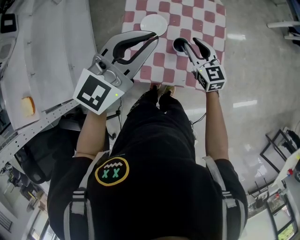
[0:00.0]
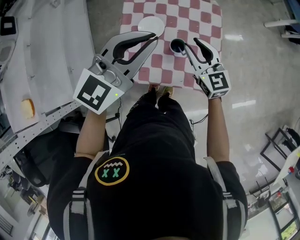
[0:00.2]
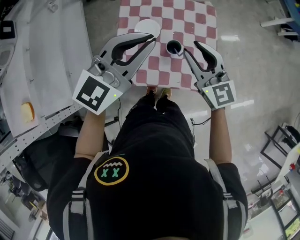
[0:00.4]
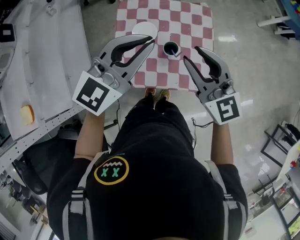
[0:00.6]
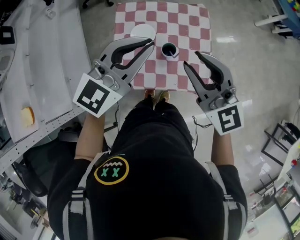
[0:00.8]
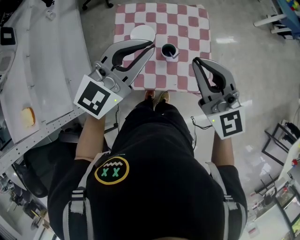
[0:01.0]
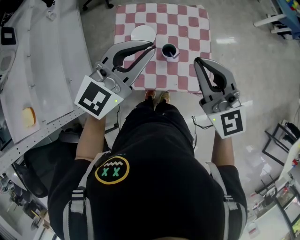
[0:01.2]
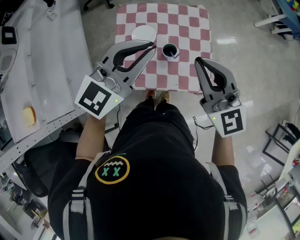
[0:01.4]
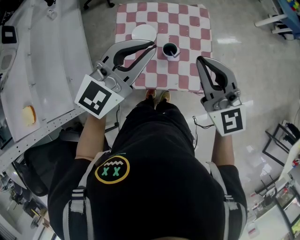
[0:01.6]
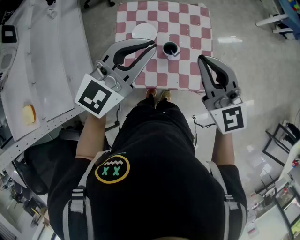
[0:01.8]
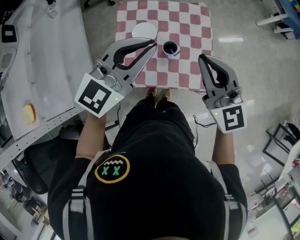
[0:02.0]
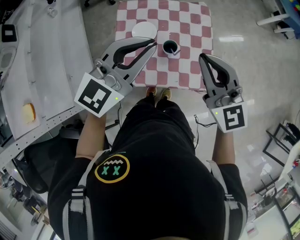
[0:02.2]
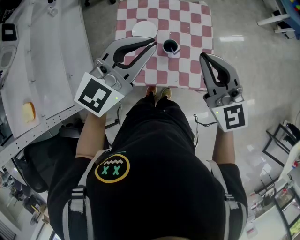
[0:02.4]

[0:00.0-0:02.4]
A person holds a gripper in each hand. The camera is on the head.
0.0 to 1.2 s: The left gripper changes place by some 5 cm. Meanwhile the right gripper is displaced upward and backward by roughly 25 cm, rotates roughly 20 degrees, and closes up.
1.2 to 2.4 s: There are only small adjustments of the grippers.

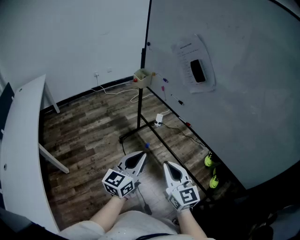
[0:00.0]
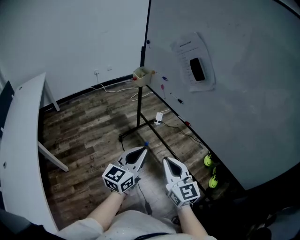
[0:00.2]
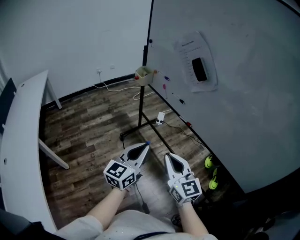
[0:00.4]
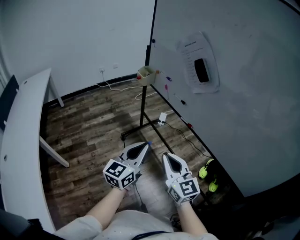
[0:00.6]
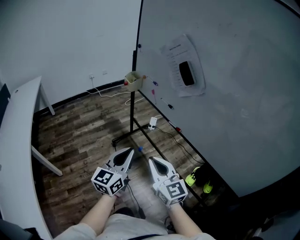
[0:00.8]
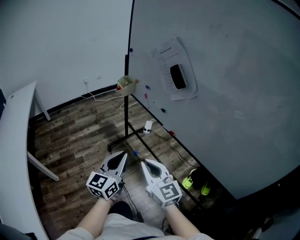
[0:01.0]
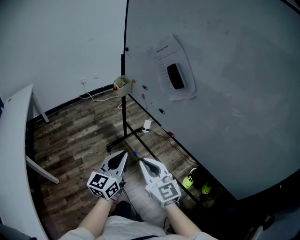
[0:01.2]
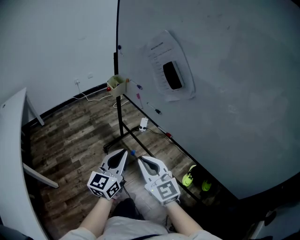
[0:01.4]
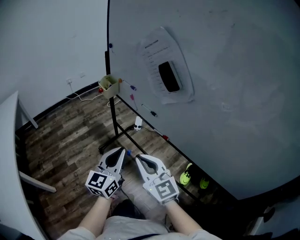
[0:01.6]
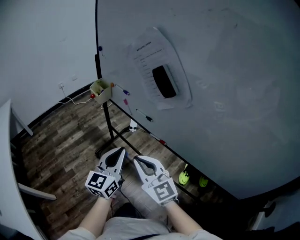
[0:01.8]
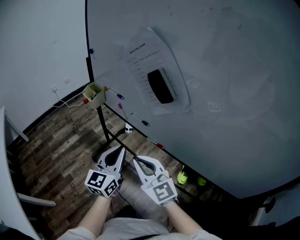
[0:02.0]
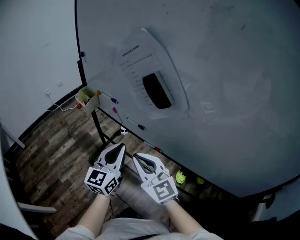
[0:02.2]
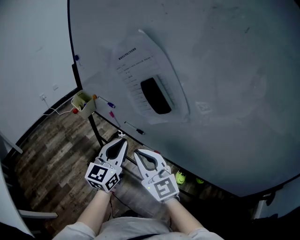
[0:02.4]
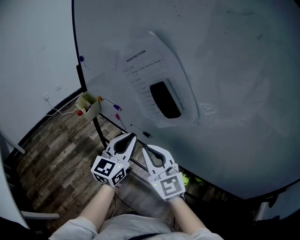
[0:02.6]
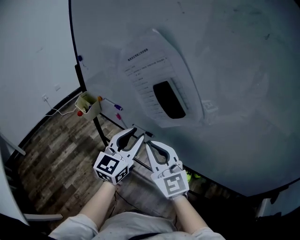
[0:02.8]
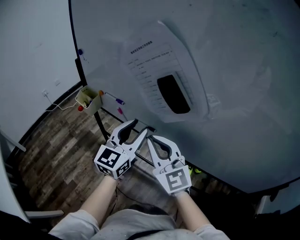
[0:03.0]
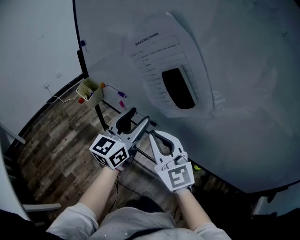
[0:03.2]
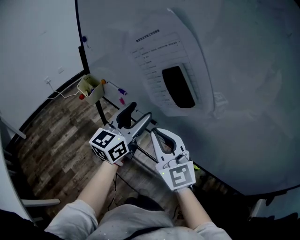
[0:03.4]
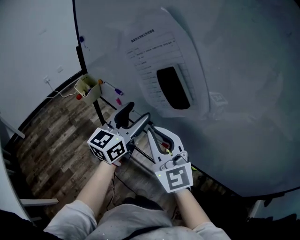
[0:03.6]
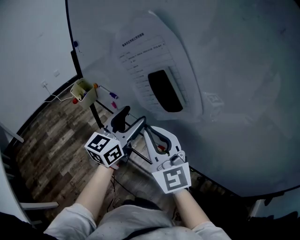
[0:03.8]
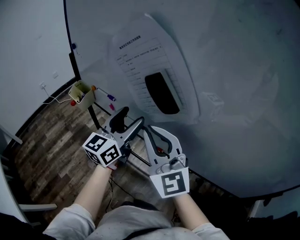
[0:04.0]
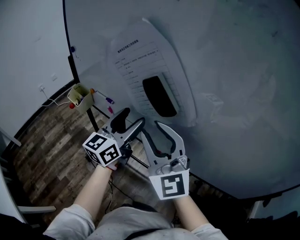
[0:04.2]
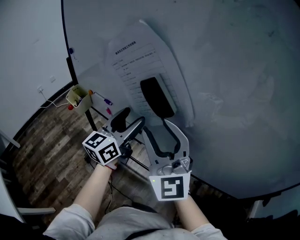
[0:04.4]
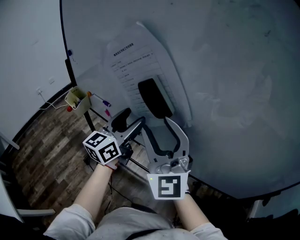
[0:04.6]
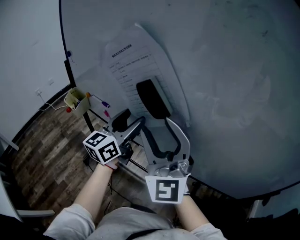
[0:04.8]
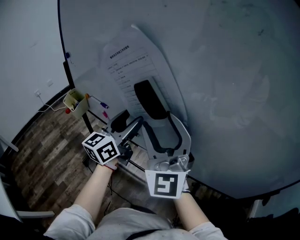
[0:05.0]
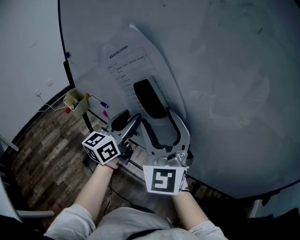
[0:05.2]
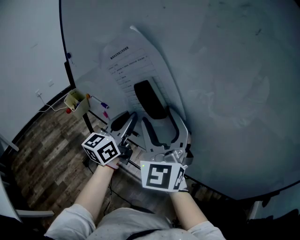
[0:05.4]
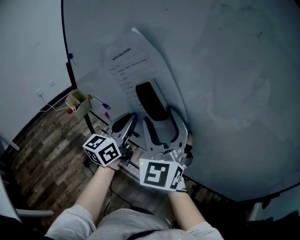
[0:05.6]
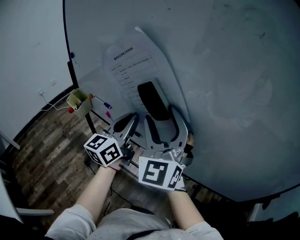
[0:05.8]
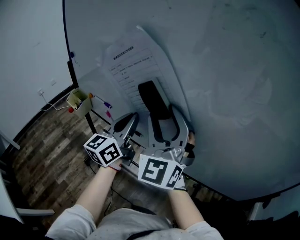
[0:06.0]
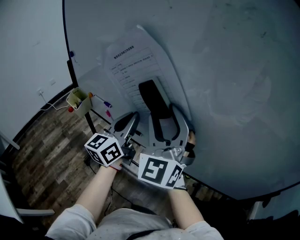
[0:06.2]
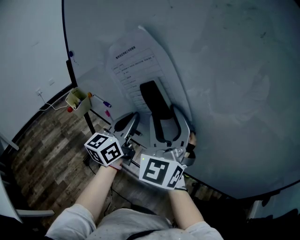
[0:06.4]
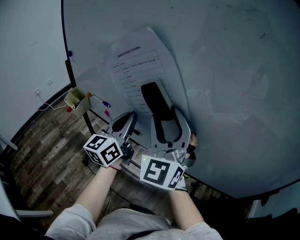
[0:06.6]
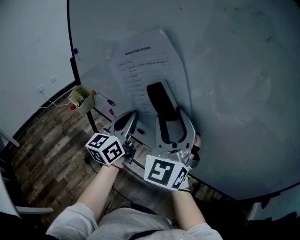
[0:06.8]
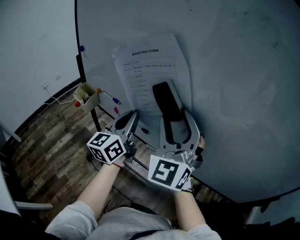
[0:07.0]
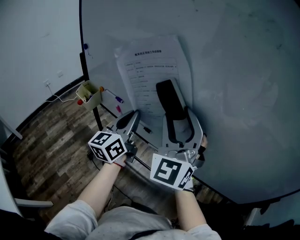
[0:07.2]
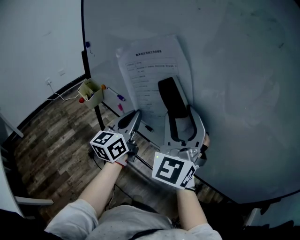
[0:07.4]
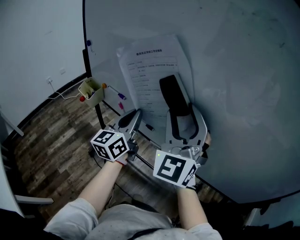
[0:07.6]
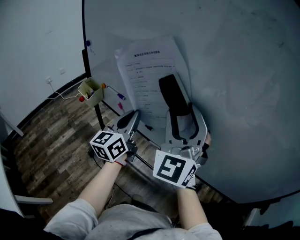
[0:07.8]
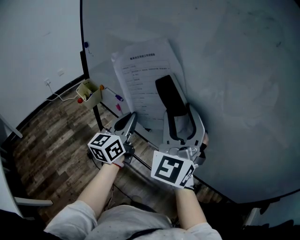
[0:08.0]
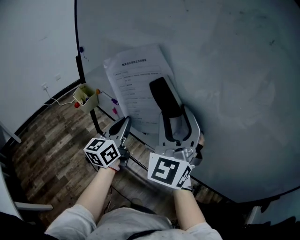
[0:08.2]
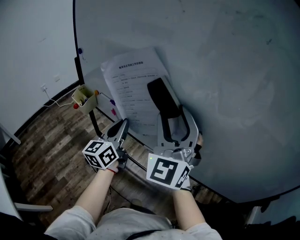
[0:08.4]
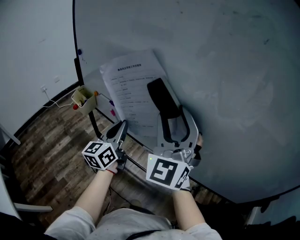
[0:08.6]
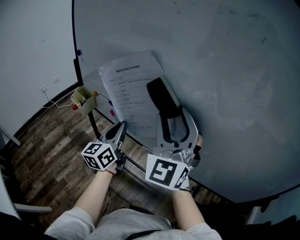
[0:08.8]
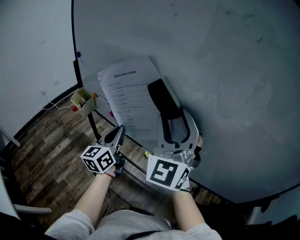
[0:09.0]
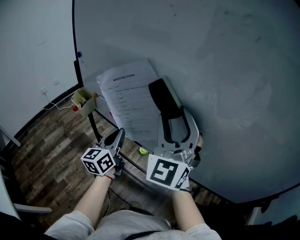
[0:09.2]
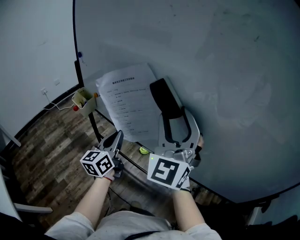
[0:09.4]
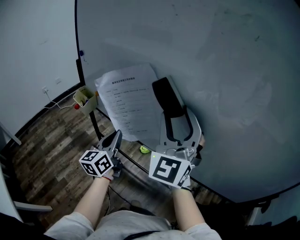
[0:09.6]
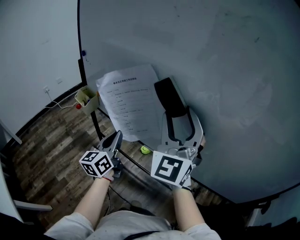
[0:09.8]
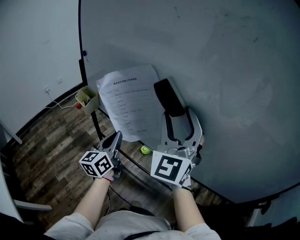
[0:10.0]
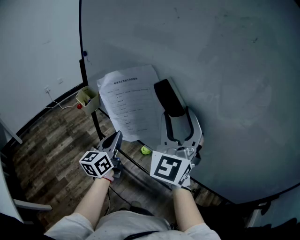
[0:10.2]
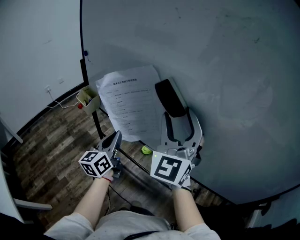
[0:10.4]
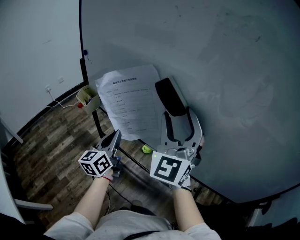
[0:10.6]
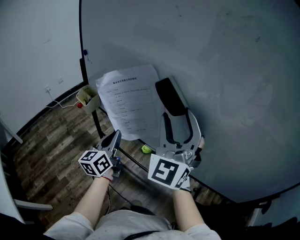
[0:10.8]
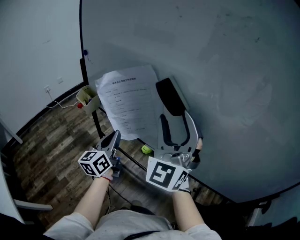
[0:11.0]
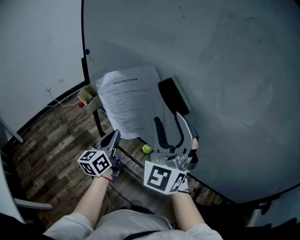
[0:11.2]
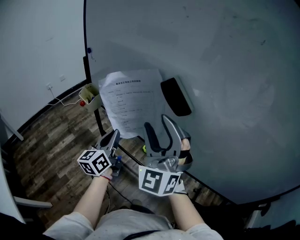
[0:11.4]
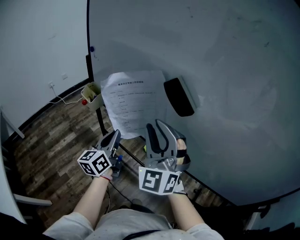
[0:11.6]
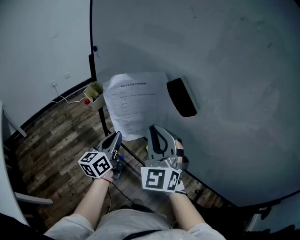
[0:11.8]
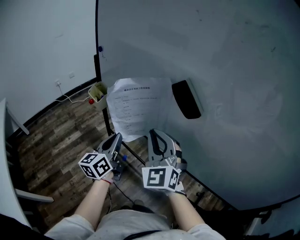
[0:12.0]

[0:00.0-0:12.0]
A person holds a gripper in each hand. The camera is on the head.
0.0 to 1.6 s: The two grippers go approximately 20 cm forward.
1.6 to 3.0 s: Both grippers travel together forward, approximately 20 cm. The left gripper rotates some 20 degrees, and opens its fingers, while the right gripper rotates some 20 degrees.
3.0 to 4.4 s: The left gripper changes place by some 5 cm, and opens its fingers. The right gripper moves upward and to the right, approximately 10 cm, and opens.
4.4 to 6.0 s: The right gripper changes place by some 5 cm, and changes its angle by approximately 30 degrees; the left gripper closes its fingers.
6.0 to 7.6 s: The left gripper moves approximately 5 cm.
7.6 to 9.0 s: The grippers stay close to where they were, moving slightly.
9.0 to 10.4 s: There are only small adjustments of the grippers.
10.4 to 12.0 s: The right gripper goes roughly 15 cm downward and to the left, changes its angle by roughly 30 degrees, and closes its fingers.

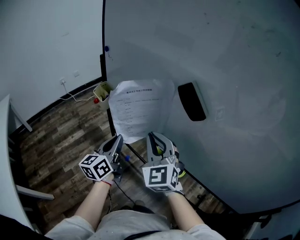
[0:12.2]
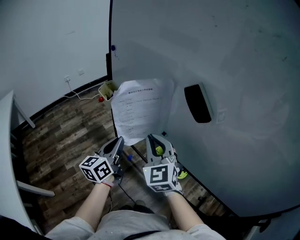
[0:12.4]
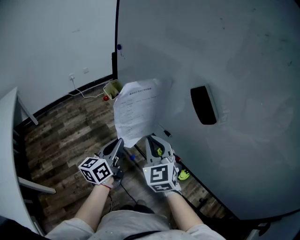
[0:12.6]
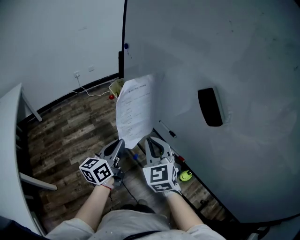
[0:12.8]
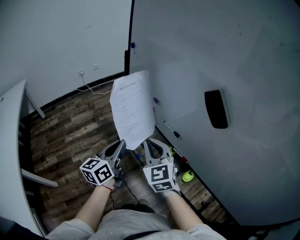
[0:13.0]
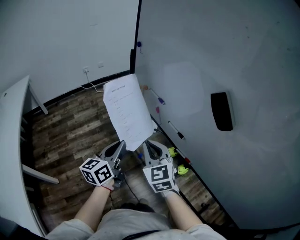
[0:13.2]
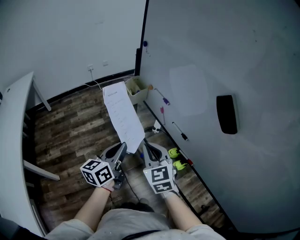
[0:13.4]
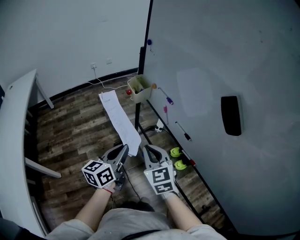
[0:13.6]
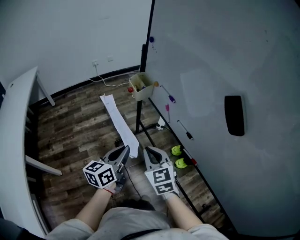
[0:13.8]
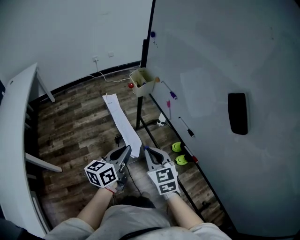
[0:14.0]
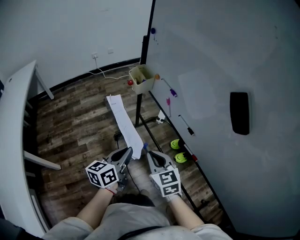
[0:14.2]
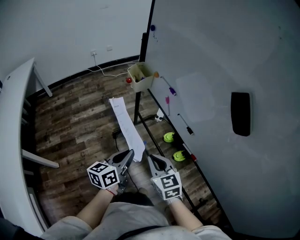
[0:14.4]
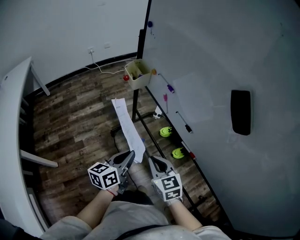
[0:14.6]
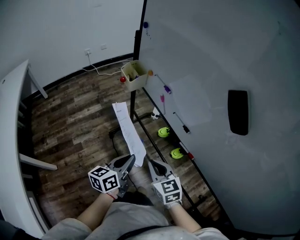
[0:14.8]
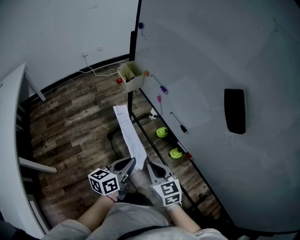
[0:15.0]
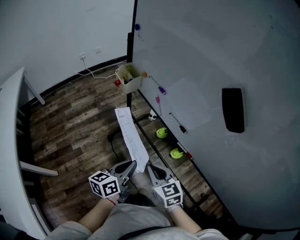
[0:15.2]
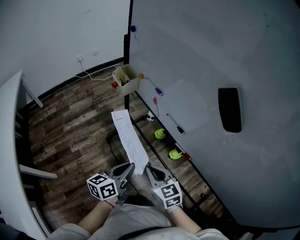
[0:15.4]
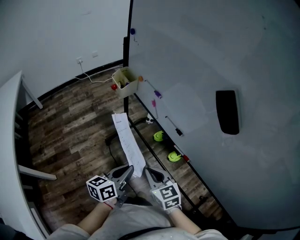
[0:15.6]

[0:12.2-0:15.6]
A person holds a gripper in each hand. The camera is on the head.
12.2 to 13.8 s: The left gripper is displaced to the left, backward and downward by about 10 cm, while the right gripper is displaced downward and to the left by approximately 20 cm, and turns by approximately 30 degrees.
13.8 to 15.6 s: The right gripper travels downward, to the right and backward by about 10 cm. Meanwhile the left gripper is displaced to the right and downward by approximately 10 cm.

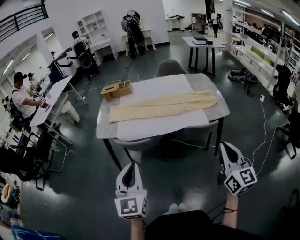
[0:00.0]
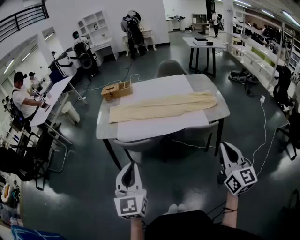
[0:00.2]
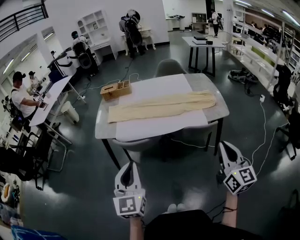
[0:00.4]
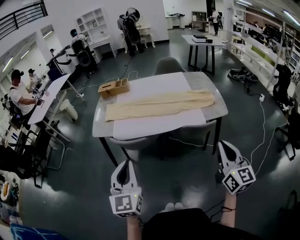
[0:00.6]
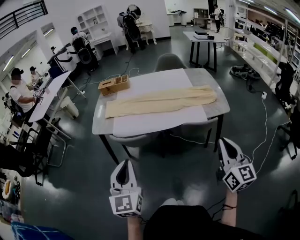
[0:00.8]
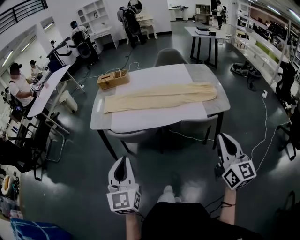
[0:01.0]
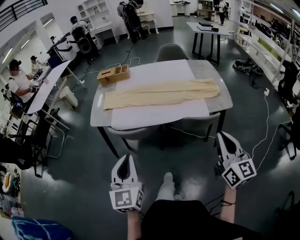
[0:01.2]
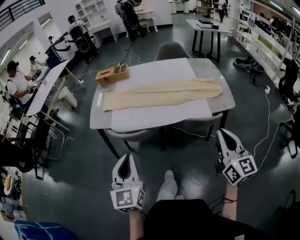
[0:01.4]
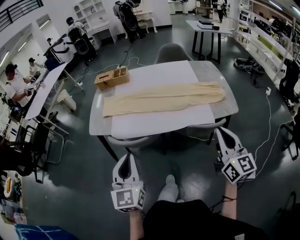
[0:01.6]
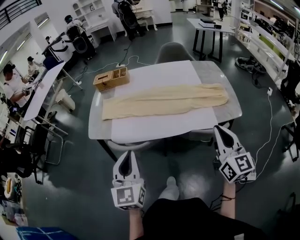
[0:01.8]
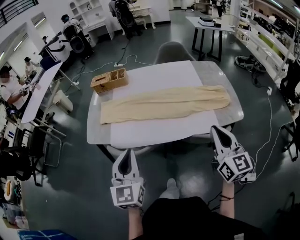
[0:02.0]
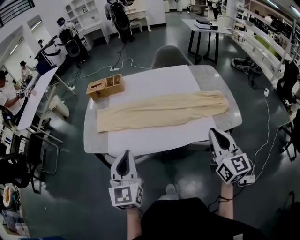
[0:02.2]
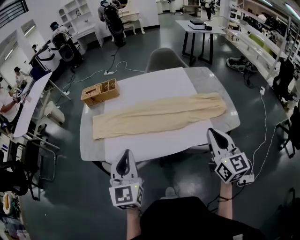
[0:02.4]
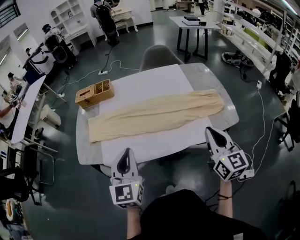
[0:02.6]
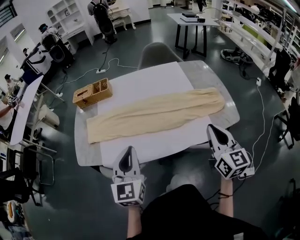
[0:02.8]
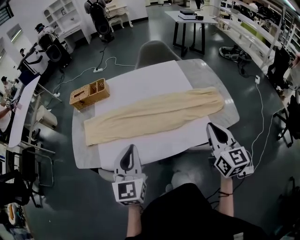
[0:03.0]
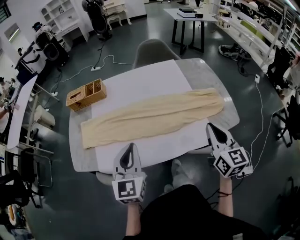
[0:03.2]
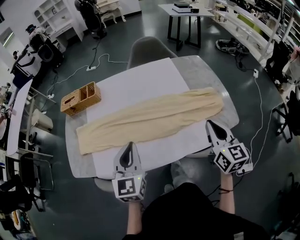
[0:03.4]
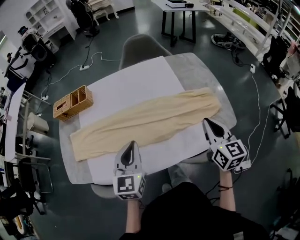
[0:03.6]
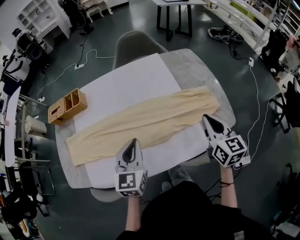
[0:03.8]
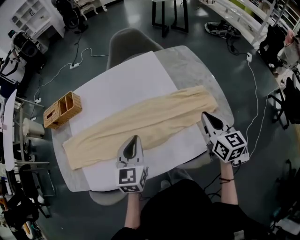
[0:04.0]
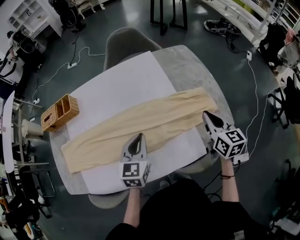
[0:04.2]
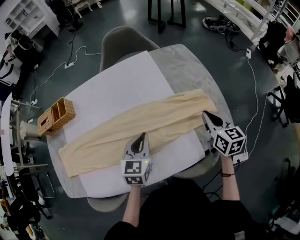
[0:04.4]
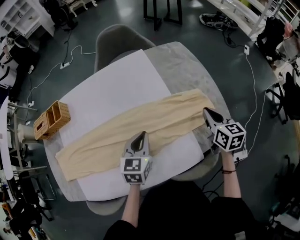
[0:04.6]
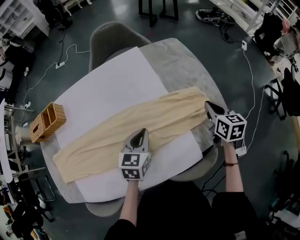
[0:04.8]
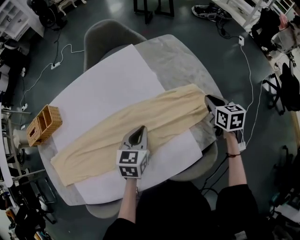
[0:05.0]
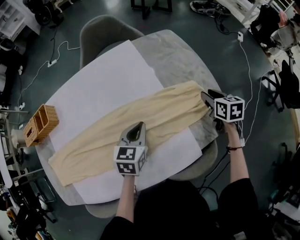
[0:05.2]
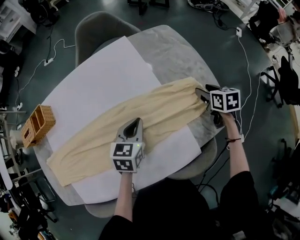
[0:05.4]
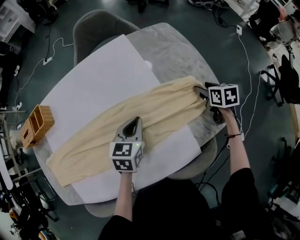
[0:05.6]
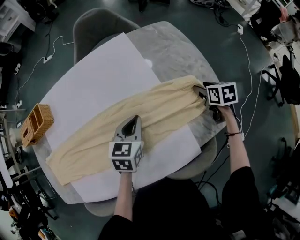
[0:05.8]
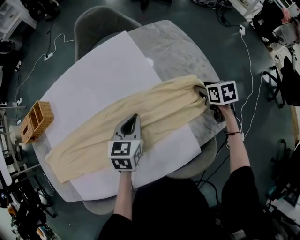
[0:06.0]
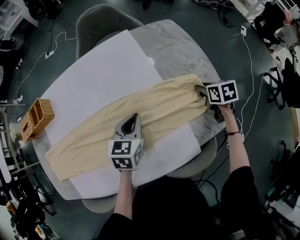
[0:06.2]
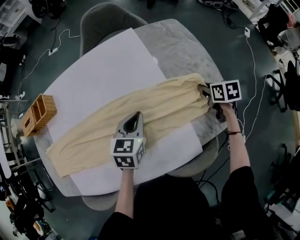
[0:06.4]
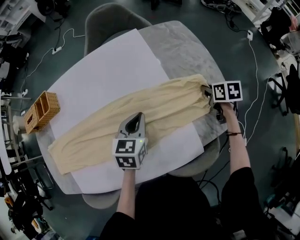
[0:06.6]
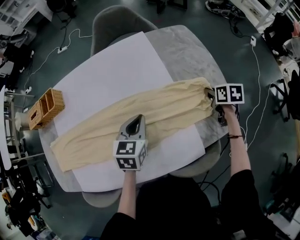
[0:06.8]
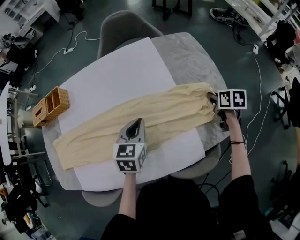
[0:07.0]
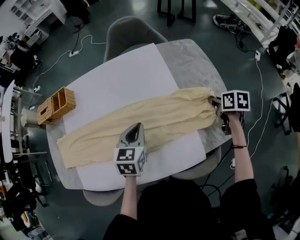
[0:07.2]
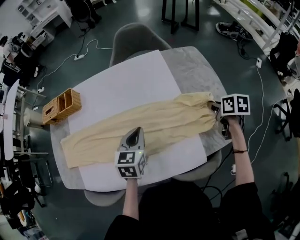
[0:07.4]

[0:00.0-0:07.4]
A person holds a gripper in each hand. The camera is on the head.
0.0 to 1.4 s: The two grippers go approximately 5 cm forward.
1.4 to 3.0 s: The grippers both shift forward by about 30 cm.
3.0 to 4.4 s: Both grippers travel together forward, to the right and downward, some 30 cm. The left gripper changes its angle by some 30 degrees, while the right gripper rotates some 20 degrees.
4.4 to 6.0 s: The left gripper goes approximately 10 cm forward and downward; the right gripper moves downward, forward and to the right, roughly 20 cm, tilts its fingers some 30 degrees downward, and opens.
6.0 to 7.4 s: The right gripper moves upward and to the left, approximately 10 cm, and closes up, while the left gripper shifts approximately 10 cm to the left and upward.
